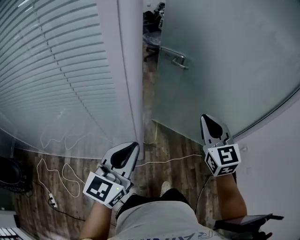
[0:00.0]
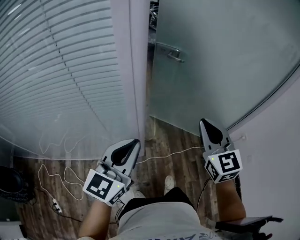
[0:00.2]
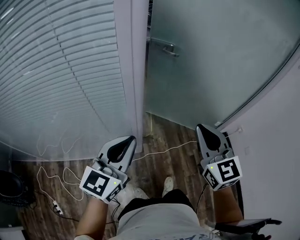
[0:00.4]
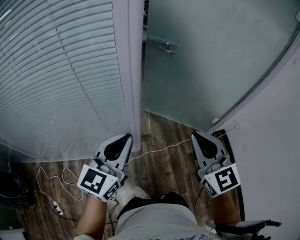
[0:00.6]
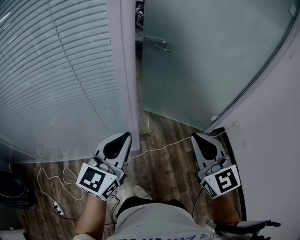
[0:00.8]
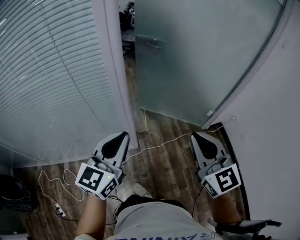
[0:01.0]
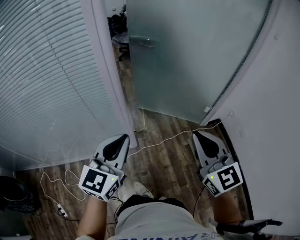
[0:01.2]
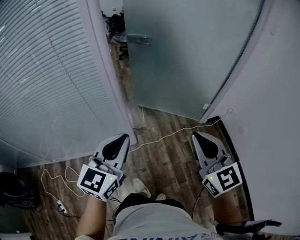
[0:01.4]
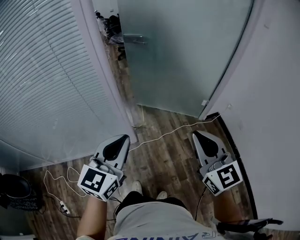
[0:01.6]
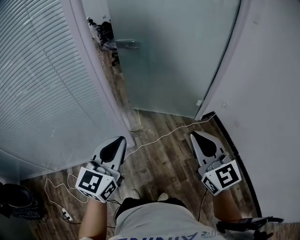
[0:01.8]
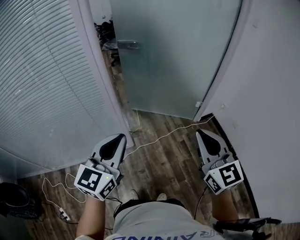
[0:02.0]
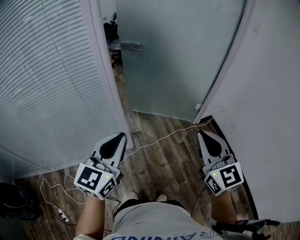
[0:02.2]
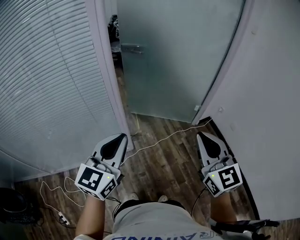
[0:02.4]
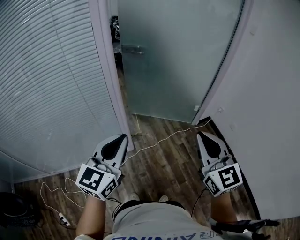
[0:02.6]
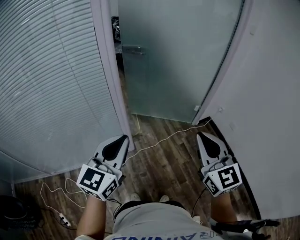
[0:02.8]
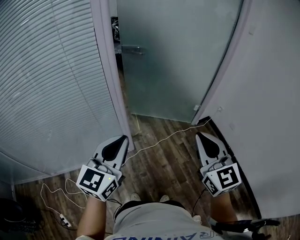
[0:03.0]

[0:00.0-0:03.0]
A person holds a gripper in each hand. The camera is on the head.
0.0 to 1.6 s: The right gripper shifts some 35 cm backward. Meanwhile the left gripper goes roughly 20 cm backward.
1.6 to 3.0 s: The left gripper moves to the left, some 5 cm; the right gripper travels backward by roughly 5 cm.

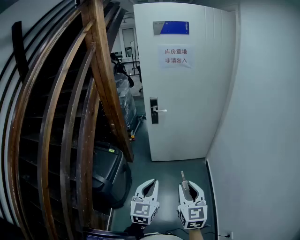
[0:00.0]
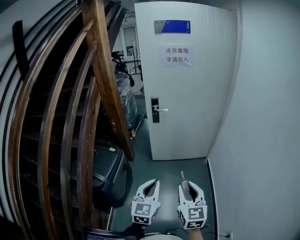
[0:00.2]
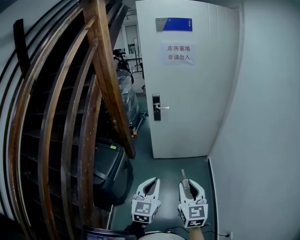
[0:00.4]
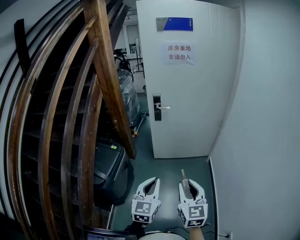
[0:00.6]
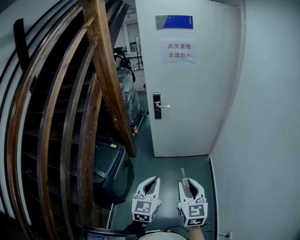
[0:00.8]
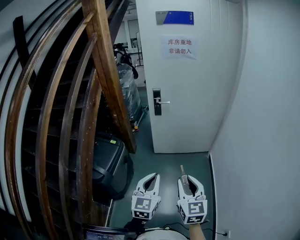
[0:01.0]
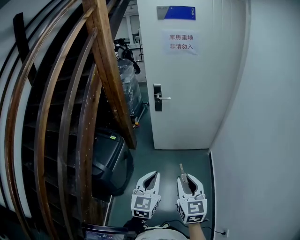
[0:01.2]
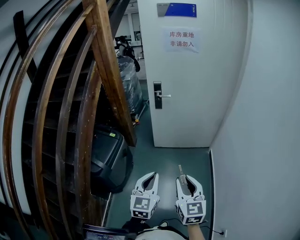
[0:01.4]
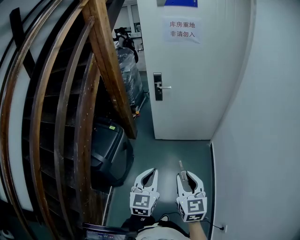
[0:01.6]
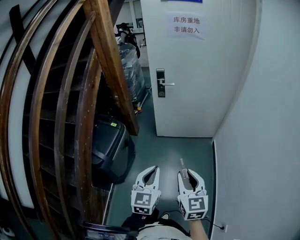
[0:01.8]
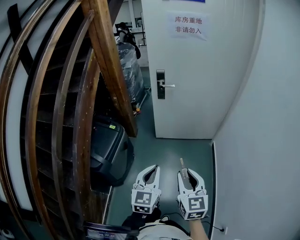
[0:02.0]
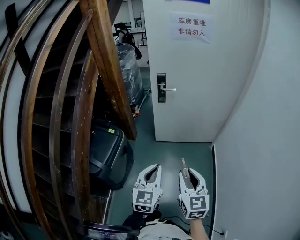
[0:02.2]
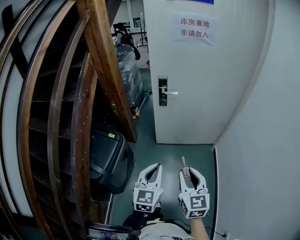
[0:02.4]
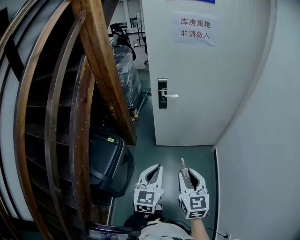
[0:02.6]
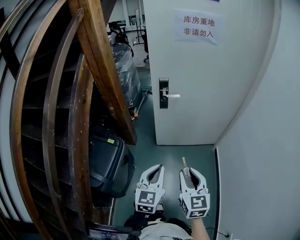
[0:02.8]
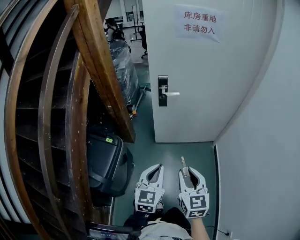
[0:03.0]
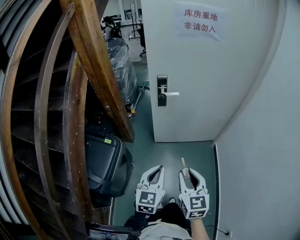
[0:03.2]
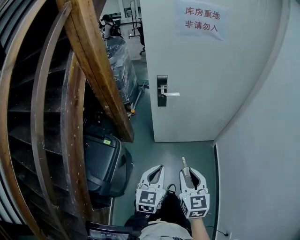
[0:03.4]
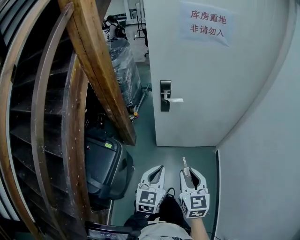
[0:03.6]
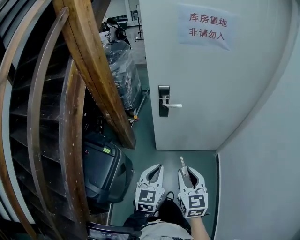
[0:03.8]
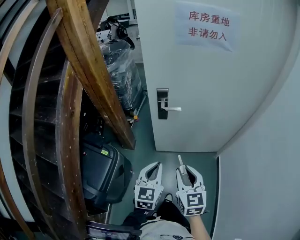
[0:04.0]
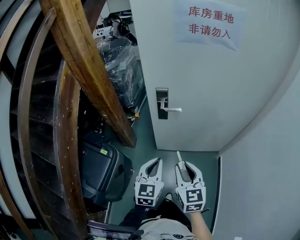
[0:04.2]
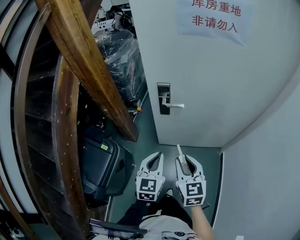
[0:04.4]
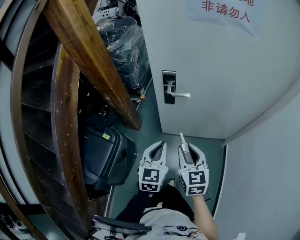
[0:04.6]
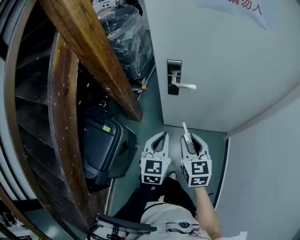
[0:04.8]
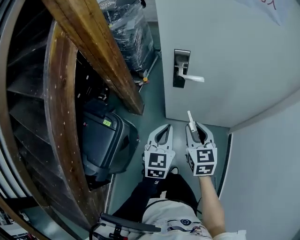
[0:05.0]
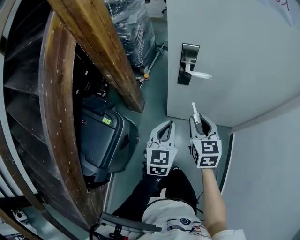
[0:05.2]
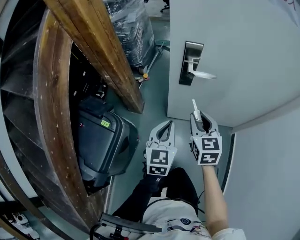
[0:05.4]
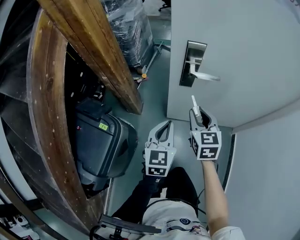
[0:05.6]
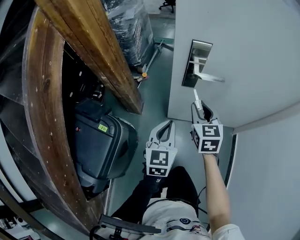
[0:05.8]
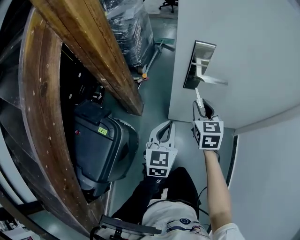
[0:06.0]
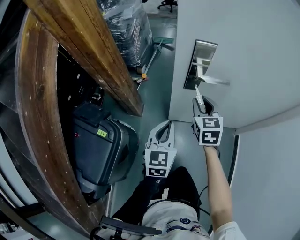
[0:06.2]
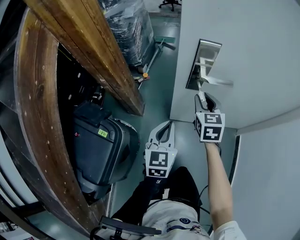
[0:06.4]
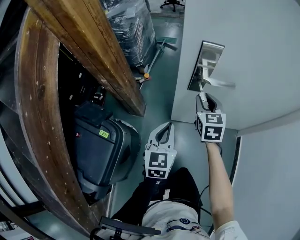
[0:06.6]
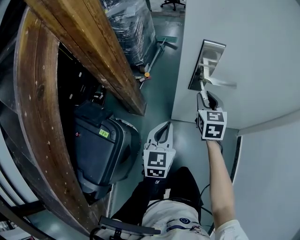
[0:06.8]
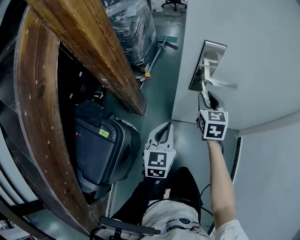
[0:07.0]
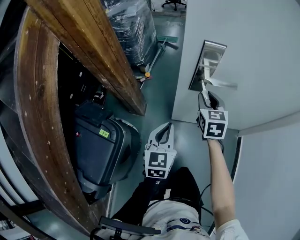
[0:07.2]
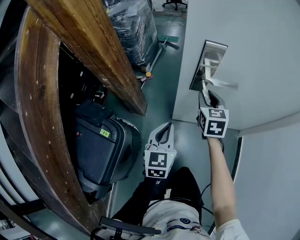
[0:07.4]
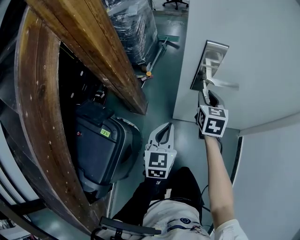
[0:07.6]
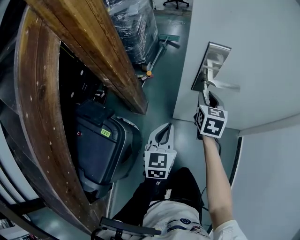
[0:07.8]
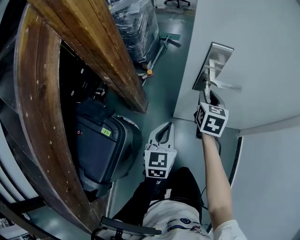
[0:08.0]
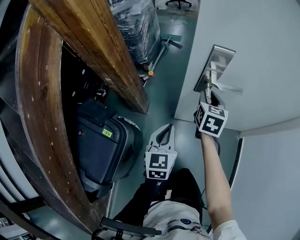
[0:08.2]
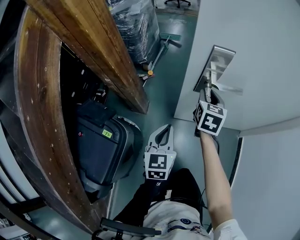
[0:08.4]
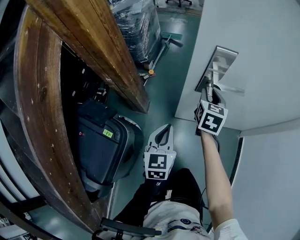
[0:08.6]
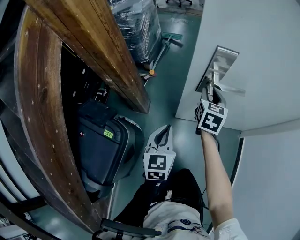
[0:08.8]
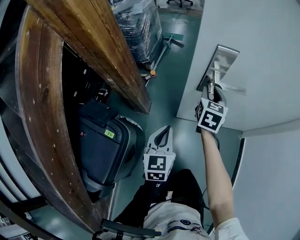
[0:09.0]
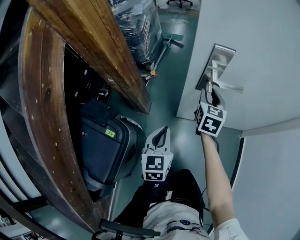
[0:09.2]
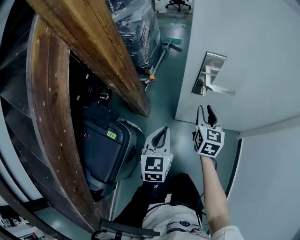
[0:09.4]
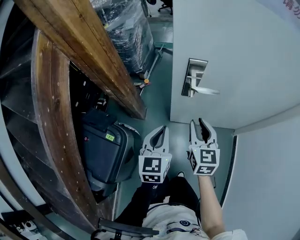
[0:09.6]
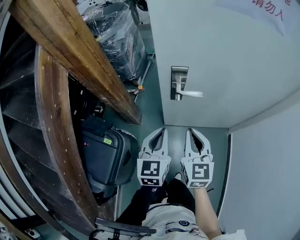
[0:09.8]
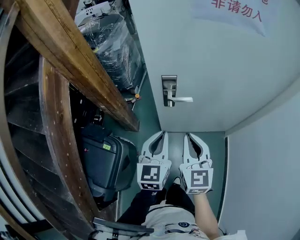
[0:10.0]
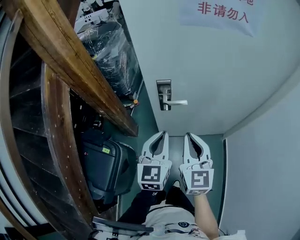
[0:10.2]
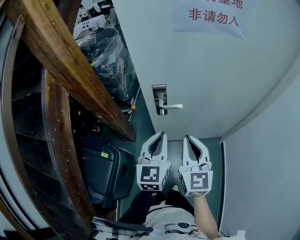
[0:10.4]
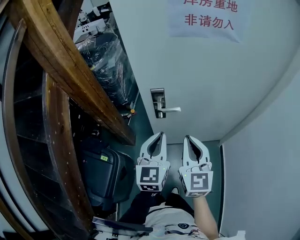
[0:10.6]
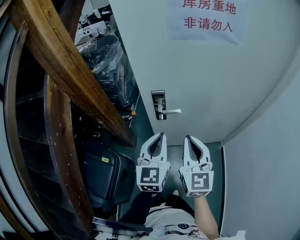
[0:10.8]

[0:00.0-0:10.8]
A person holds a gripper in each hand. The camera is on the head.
0.0 to 1.6 s: The grippers make only small movements.
1.6 to 3.0 s: Both grippers move forward, roughly 20 cm.
3.0 to 4.6 s: Both grippers move forward, roughly 25 cm.
4.6 to 6.2 s: The left gripper goes roughly 20 cm downward, forward and to the left. Meanwhile the right gripper heads forward and downward, covering roughly 30 cm.
6.2 to 7.8 s: The grippers make only small movements.
7.8 to 9.2 s: The grippers stay close to where they were, moving slightly.
9.2 to 10.8 s: The right gripper is displaced upward and backward by about 40 cm, rotates about 20 degrees, and closes; the left gripper moves upward and to the right, approximately 35 cm, and rotates some 20 degrees.

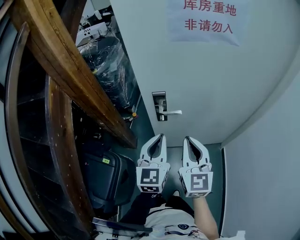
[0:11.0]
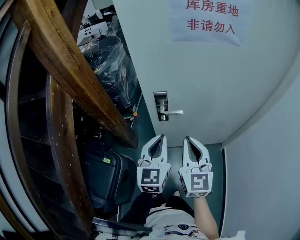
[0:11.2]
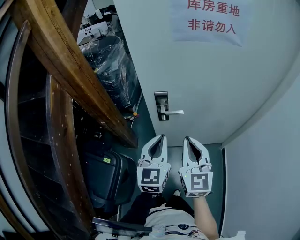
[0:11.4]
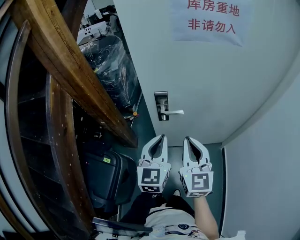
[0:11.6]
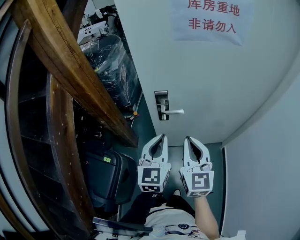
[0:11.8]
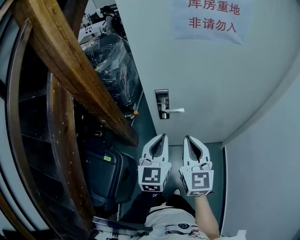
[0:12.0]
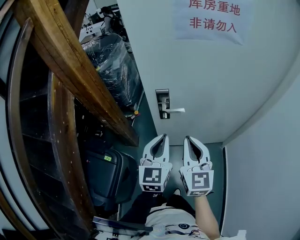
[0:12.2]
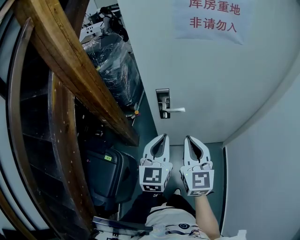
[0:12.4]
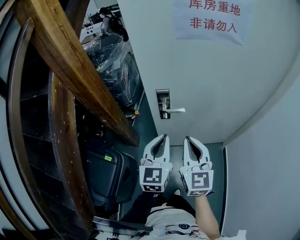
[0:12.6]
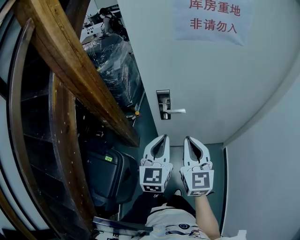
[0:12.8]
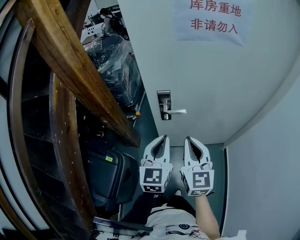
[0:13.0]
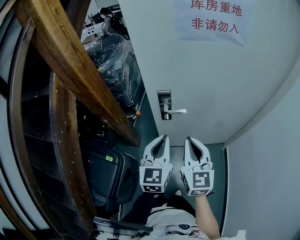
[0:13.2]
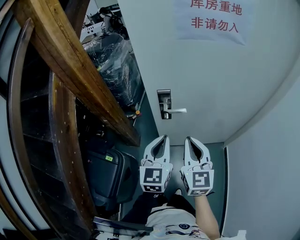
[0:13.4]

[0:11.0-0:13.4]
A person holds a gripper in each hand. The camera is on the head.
11.0 to 12.2 s: The grippers stay close to where they were, moving slightly.
12.2 to 13.4 s: The two grippers keep their place.

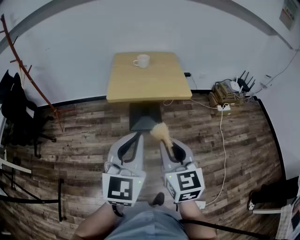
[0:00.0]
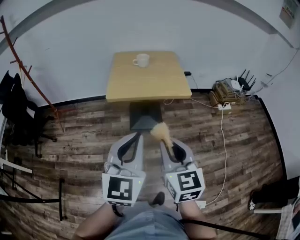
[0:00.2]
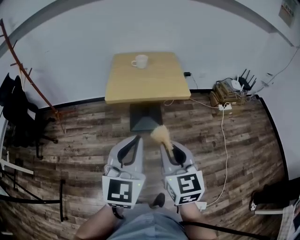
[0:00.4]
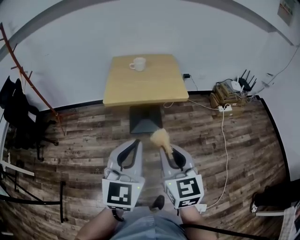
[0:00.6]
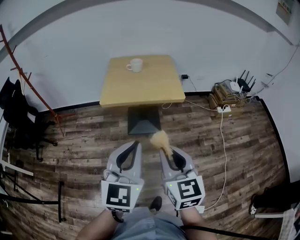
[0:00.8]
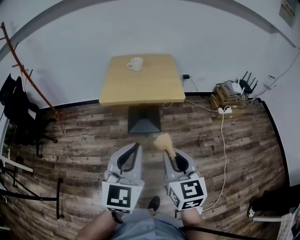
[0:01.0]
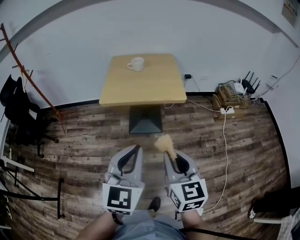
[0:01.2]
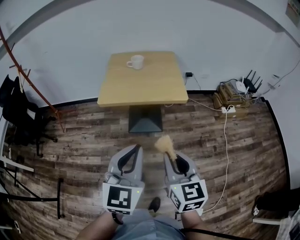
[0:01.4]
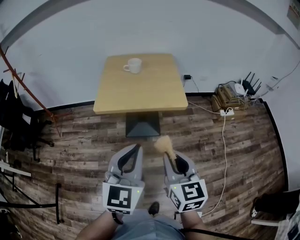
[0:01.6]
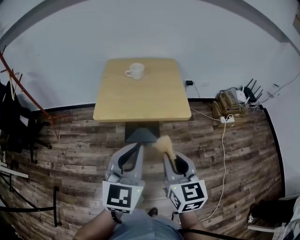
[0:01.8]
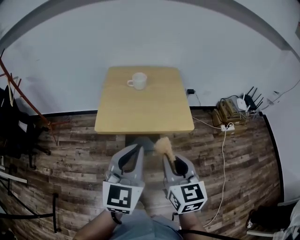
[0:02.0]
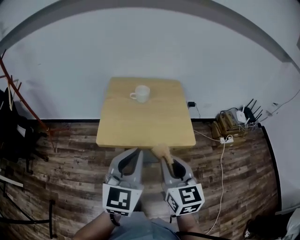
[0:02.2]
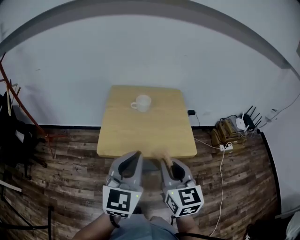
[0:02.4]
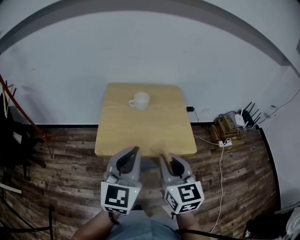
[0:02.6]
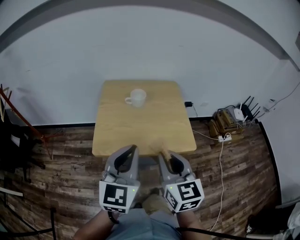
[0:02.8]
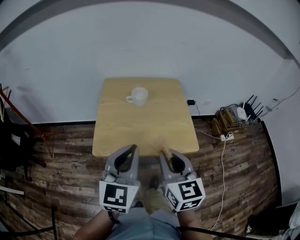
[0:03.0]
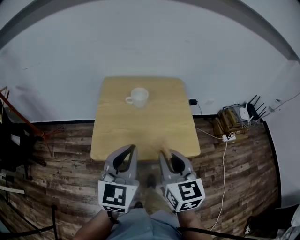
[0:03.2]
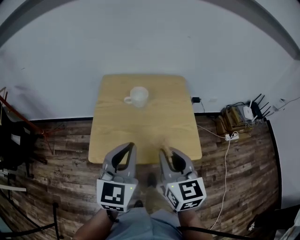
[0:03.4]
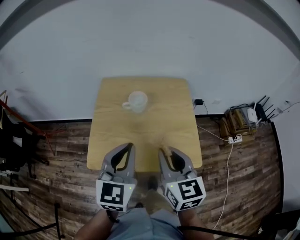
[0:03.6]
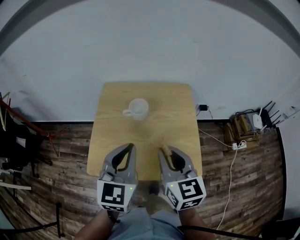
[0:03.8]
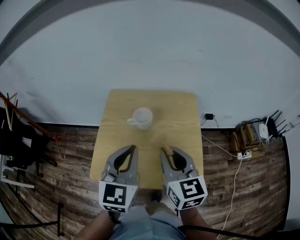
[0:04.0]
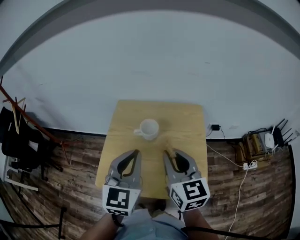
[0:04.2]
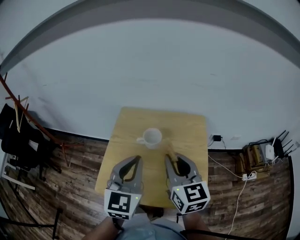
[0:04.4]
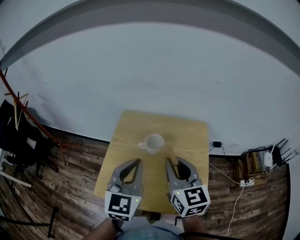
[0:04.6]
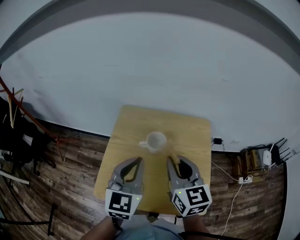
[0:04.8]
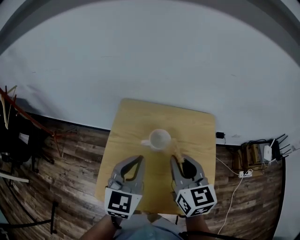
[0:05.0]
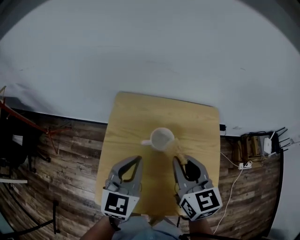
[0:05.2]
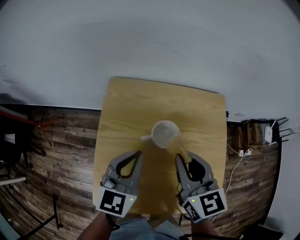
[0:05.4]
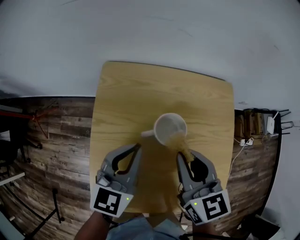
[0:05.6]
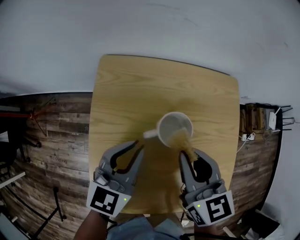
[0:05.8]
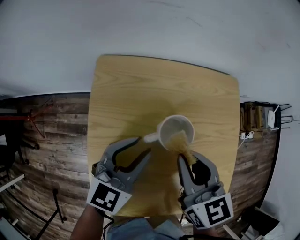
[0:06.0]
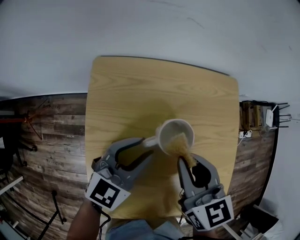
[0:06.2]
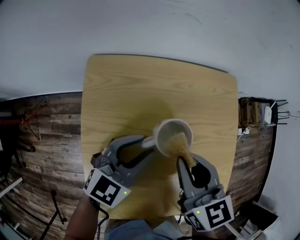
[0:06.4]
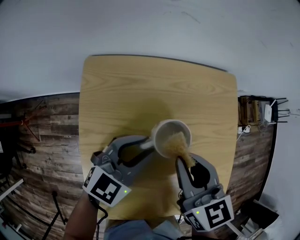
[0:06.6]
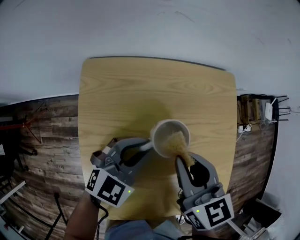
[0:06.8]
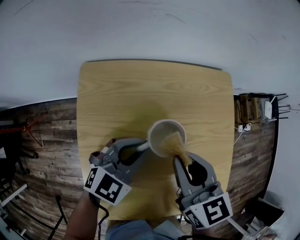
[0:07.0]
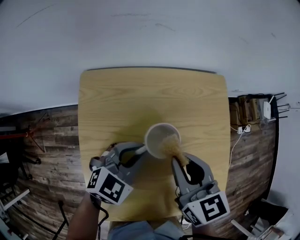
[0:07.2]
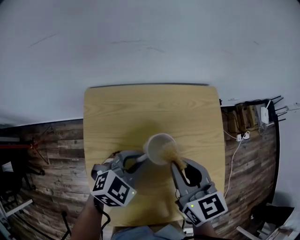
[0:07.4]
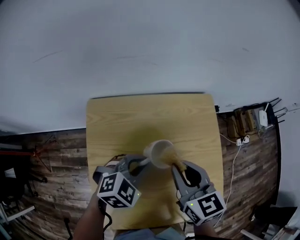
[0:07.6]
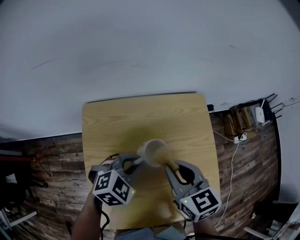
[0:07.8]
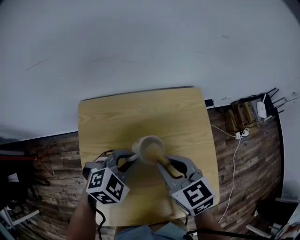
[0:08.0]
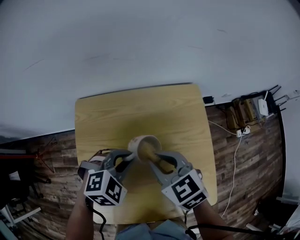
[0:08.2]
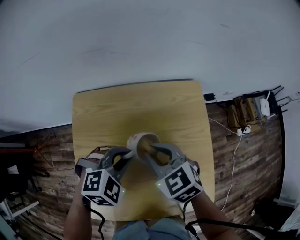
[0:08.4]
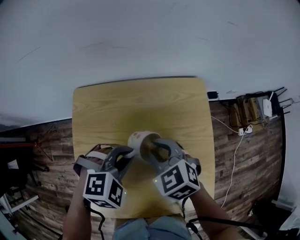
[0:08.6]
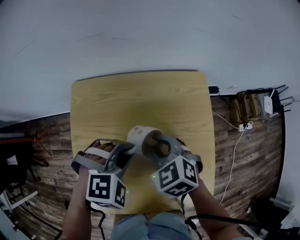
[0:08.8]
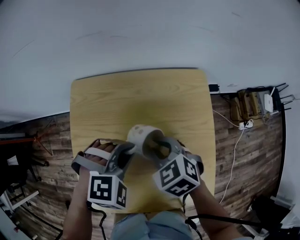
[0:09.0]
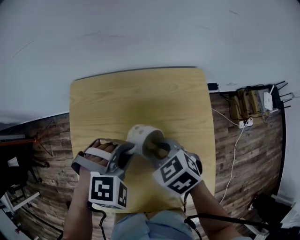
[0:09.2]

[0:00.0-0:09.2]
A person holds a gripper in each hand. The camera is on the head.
0.0 to 1.6 s: The left gripper goes roughly 10 cm forward and to the right; the right gripper is displaced to the right and forward by about 15 cm.
1.6 to 3.0 s: Both grippers travel together forward, some 25 cm.
3.0 to 4.6 s: The two grippers go about 25 cm forward.
4.6 to 6.2 s: The right gripper goes approximately 20 cm downward, forward and to the left, and changes its angle by approximately 20 degrees. The left gripper moves downward and forward, some 25 cm, rotates some 40 degrees, and opens.
6.2 to 7.6 s: The left gripper shifts by approximately 5 cm, tips its fingers downward by about 30 degrees, and closes; the right gripper changes place by some 5 cm.
7.6 to 9.2 s: The right gripper heads downward, covering roughly 10 cm, and turns by some 40 degrees, while the left gripper turns by about 30 degrees.
